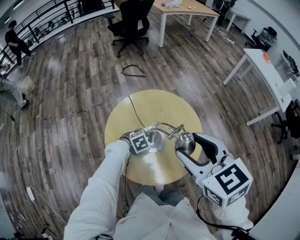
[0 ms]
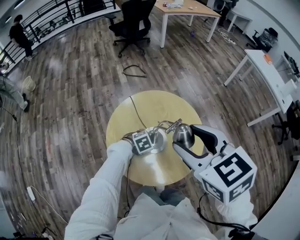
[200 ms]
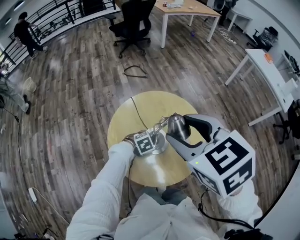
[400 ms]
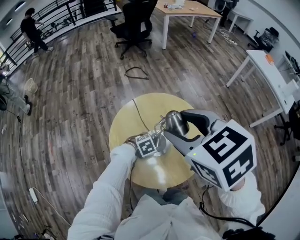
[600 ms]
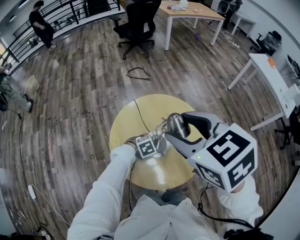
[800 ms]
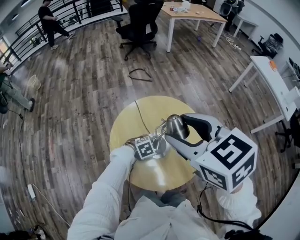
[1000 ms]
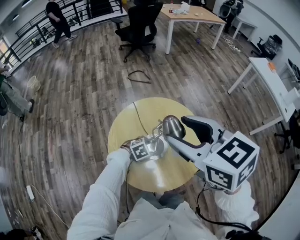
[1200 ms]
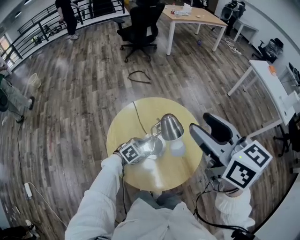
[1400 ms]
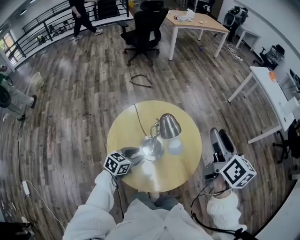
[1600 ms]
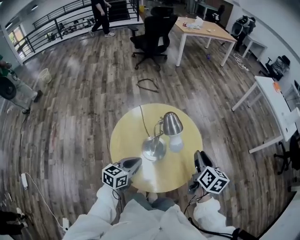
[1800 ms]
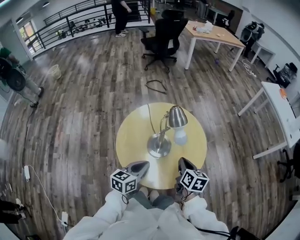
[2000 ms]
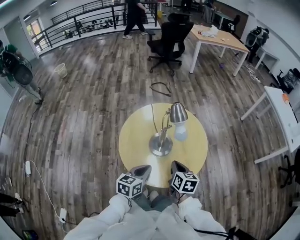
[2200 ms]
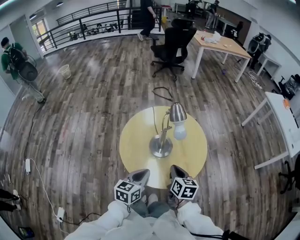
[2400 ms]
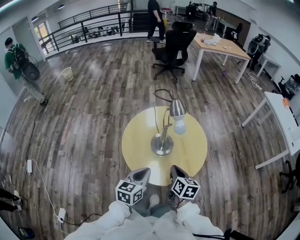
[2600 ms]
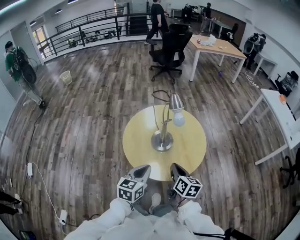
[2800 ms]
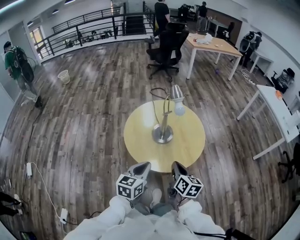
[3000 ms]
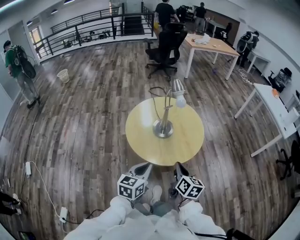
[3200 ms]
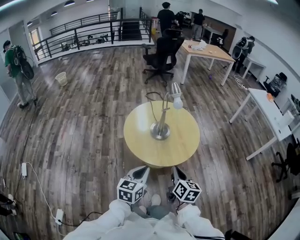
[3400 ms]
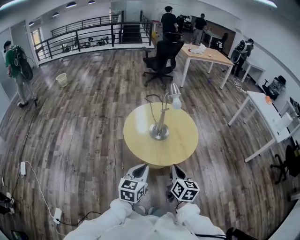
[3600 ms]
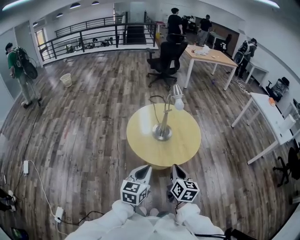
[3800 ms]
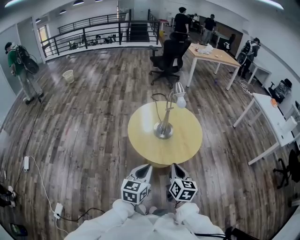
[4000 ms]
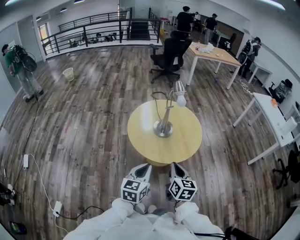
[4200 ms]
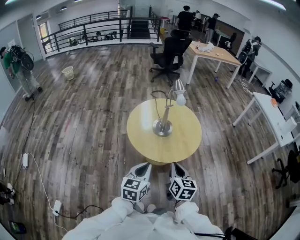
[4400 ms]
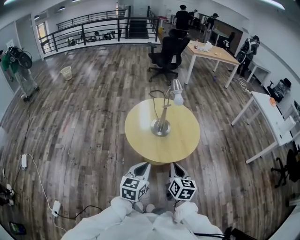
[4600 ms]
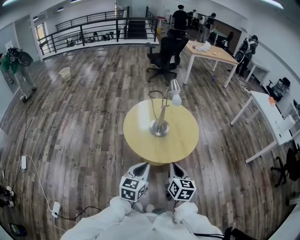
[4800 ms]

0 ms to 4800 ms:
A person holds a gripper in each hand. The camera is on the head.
0 ms to 1600 ms: The right gripper heads forward and to the right, covering some 15 cm, and changes its angle by roughly 50 degrees; the left gripper moves upward, some 10 cm, and tilts its fingers roughly 30 degrees upward.
1600 ms to 3200 ms: The left gripper moves roughly 30 cm, rotates some 30 degrees, and closes its fingers; the right gripper shifts by approximately 35 cm, and closes its fingers.
3200 ms to 4800 ms: The right gripper changes place by approximately 5 cm.

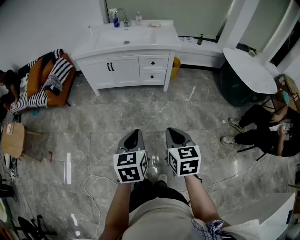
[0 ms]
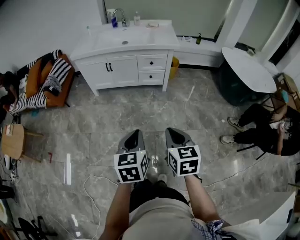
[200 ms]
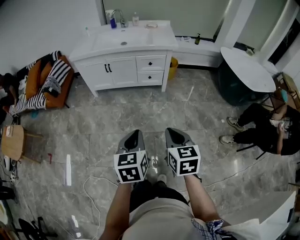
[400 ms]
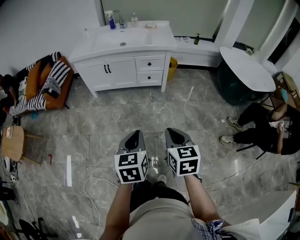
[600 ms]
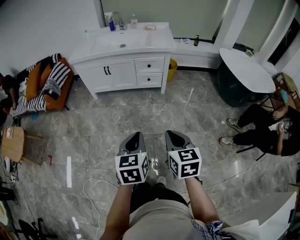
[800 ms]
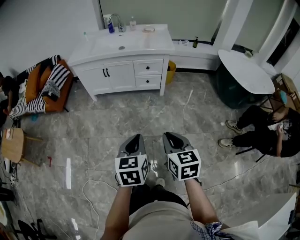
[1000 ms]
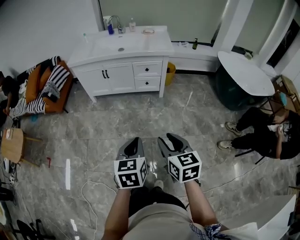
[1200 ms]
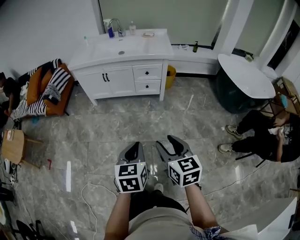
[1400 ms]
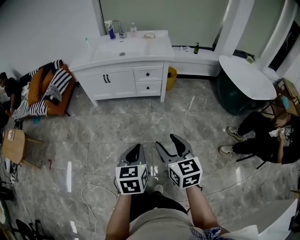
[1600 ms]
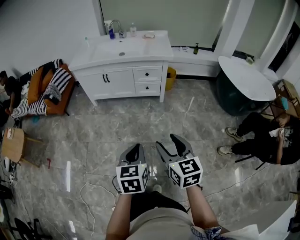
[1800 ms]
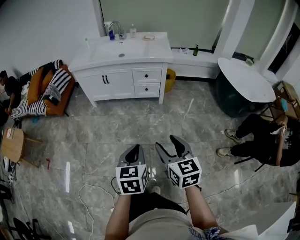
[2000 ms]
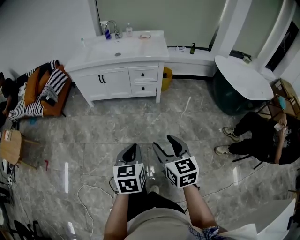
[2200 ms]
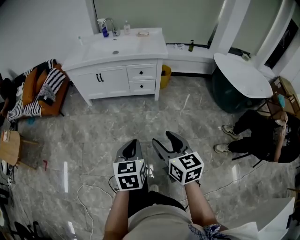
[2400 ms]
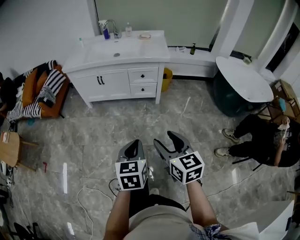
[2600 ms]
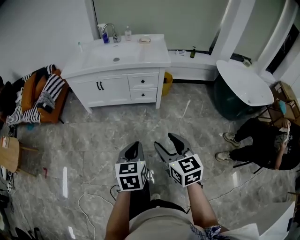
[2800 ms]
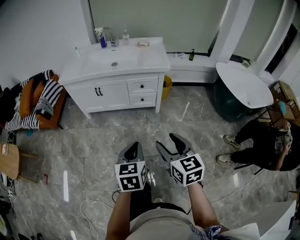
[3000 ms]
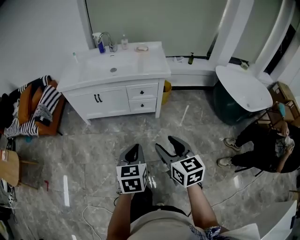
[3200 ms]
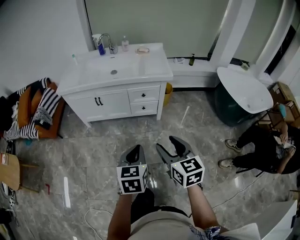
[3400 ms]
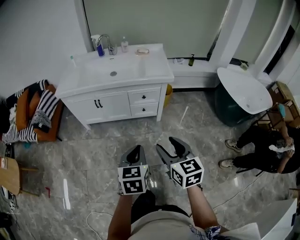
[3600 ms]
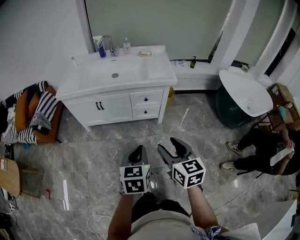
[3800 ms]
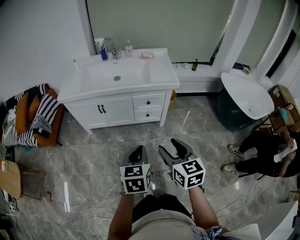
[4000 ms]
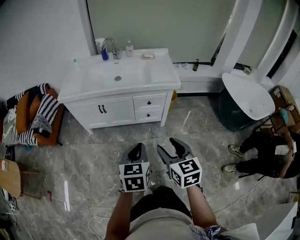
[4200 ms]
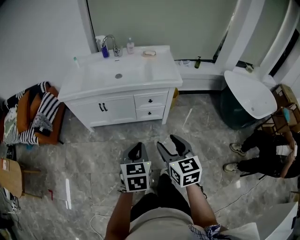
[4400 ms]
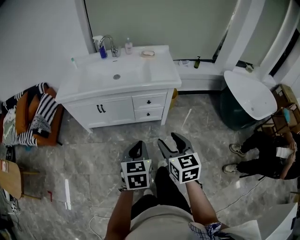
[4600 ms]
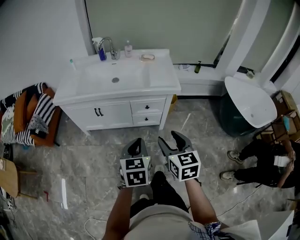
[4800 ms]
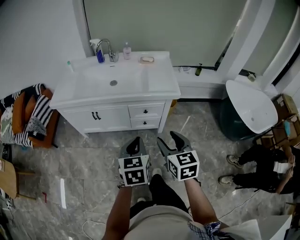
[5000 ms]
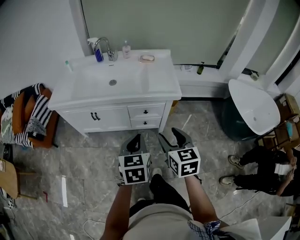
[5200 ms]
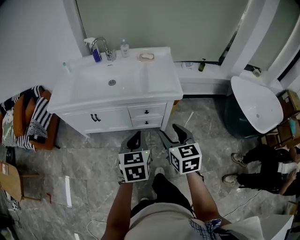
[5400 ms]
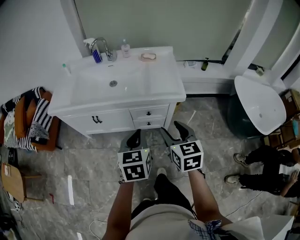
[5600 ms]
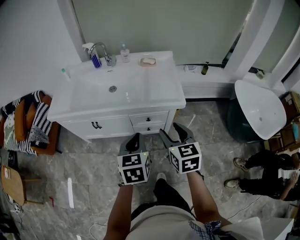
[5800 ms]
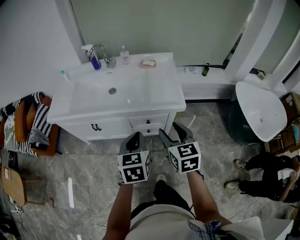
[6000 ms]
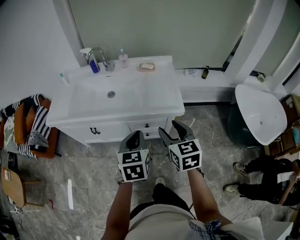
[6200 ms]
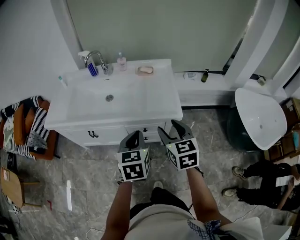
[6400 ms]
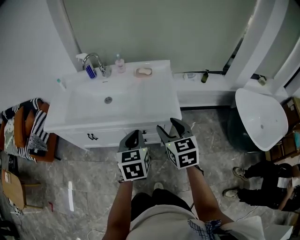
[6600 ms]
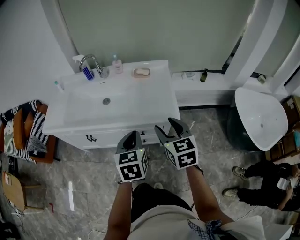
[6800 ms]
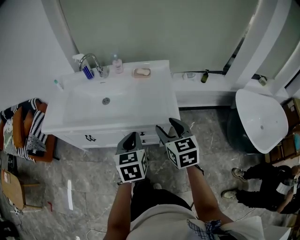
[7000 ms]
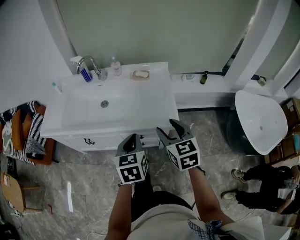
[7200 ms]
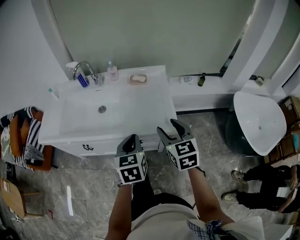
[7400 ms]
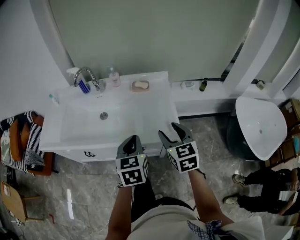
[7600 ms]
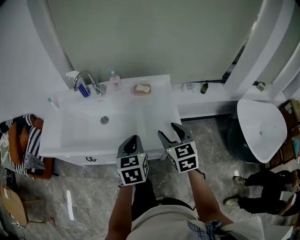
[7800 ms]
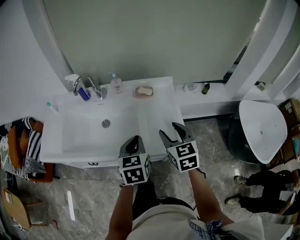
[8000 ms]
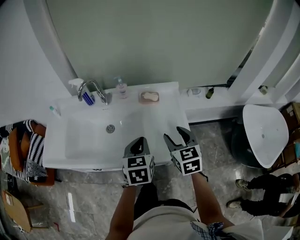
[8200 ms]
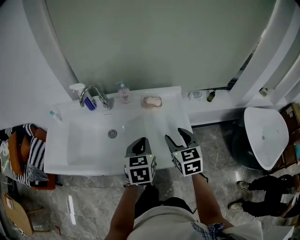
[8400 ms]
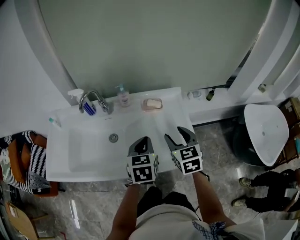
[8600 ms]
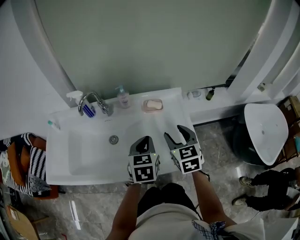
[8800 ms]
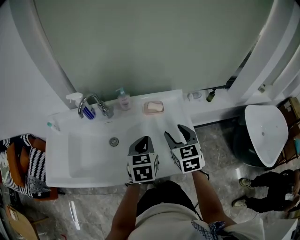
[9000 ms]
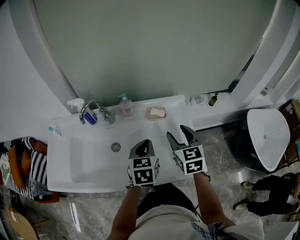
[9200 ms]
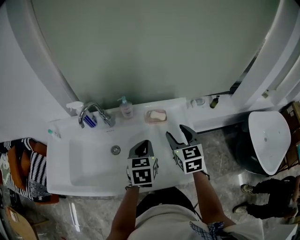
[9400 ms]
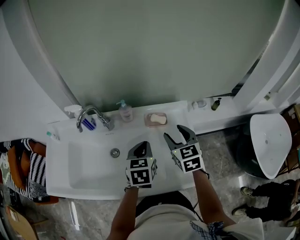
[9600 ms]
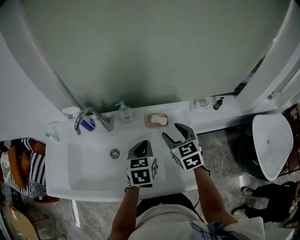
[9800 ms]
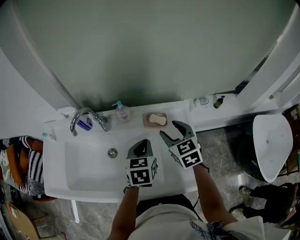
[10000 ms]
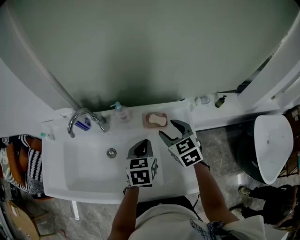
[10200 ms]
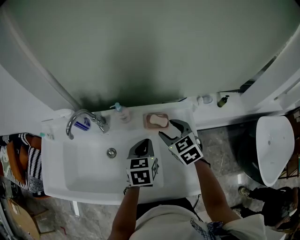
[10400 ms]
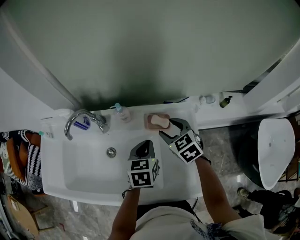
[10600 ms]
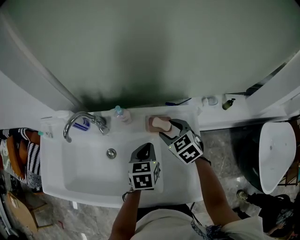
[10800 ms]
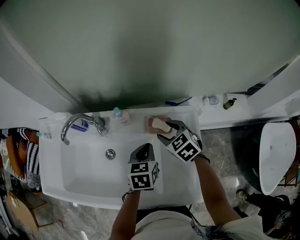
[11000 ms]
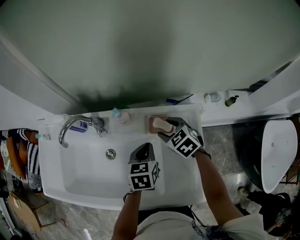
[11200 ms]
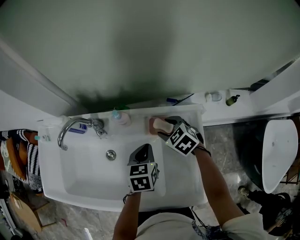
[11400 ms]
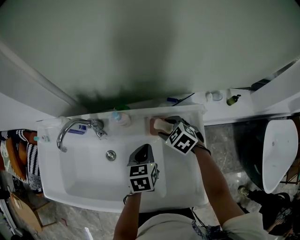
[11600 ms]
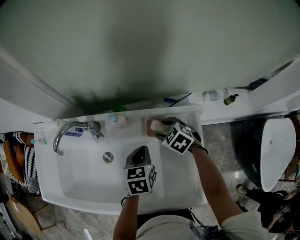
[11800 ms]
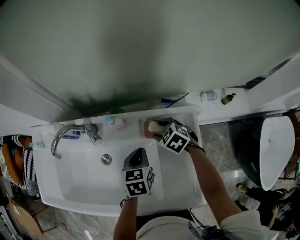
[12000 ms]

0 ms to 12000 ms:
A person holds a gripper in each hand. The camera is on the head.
0 ms to 1600 ms: The left gripper heads to the right, covering approximately 5 cm, while the right gripper opens.
1600 ms to 3000 ms: The two grippers go some 15 cm forward.
3000 ms to 4400 ms: The right gripper heads forward and to the left, covering roughly 15 cm; the left gripper is displaced forward by approximately 15 cm.
4400 ms to 6000 ms: Both grippers travel together forward, some 25 cm.
6000 ms to 7600 ms: Both grippers move forward, about 15 cm.
7600 ms to 9000 ms: The grippers both shift forward by approximately 20 cm.
9000 ms to 10400 ms: The grippers both shift forward by approximately 15 cm. The right gripper rotates roughly 30 degrees.
10400 ms to 12000 ms: The left gripper goes about 5 cm downward. Meanwhile the right gripper heads downward and forward, covering about 15 cm, and rotates approximately 30 degrees.

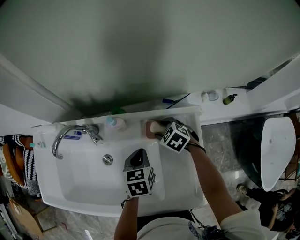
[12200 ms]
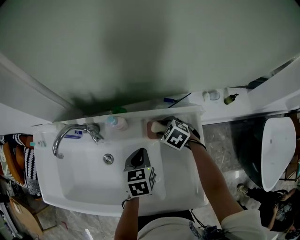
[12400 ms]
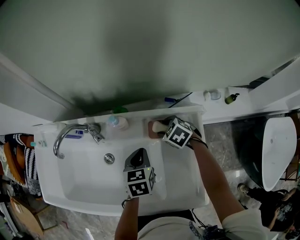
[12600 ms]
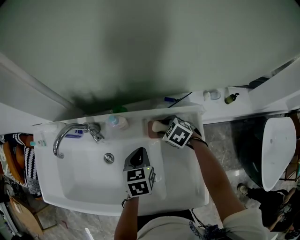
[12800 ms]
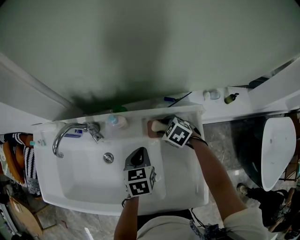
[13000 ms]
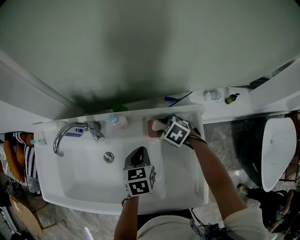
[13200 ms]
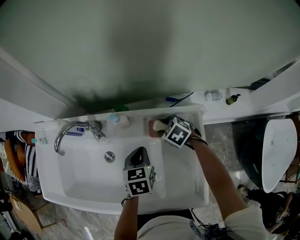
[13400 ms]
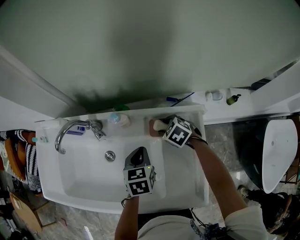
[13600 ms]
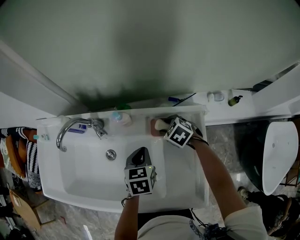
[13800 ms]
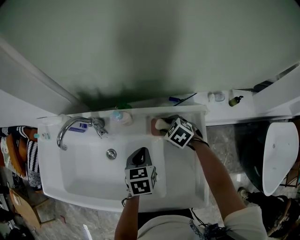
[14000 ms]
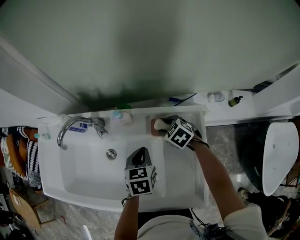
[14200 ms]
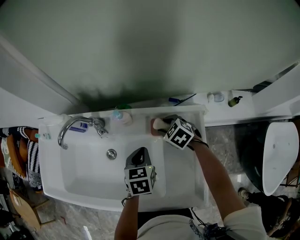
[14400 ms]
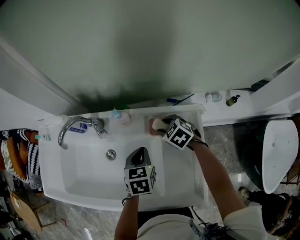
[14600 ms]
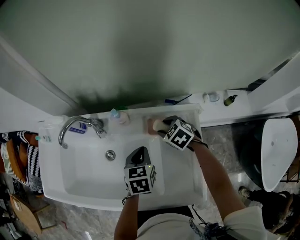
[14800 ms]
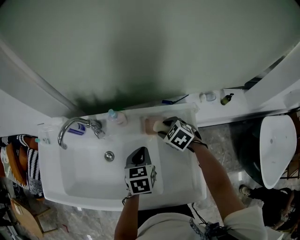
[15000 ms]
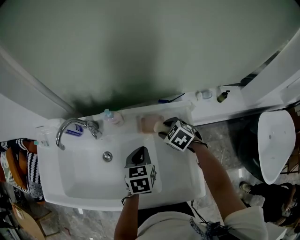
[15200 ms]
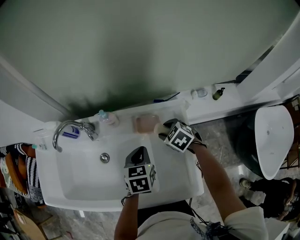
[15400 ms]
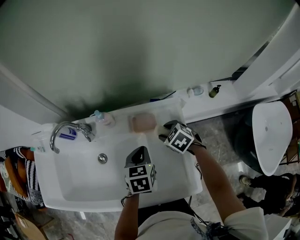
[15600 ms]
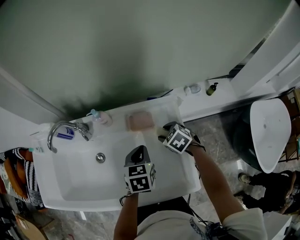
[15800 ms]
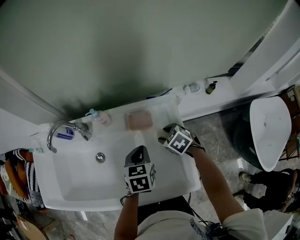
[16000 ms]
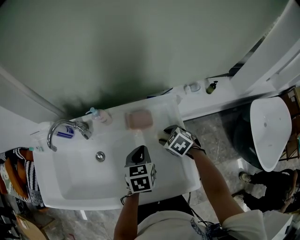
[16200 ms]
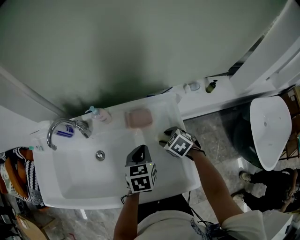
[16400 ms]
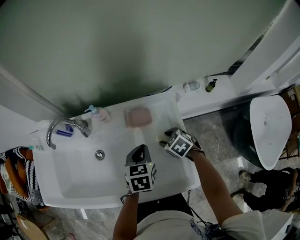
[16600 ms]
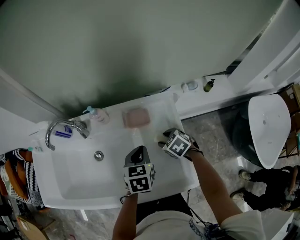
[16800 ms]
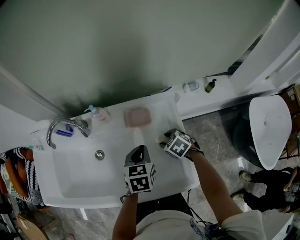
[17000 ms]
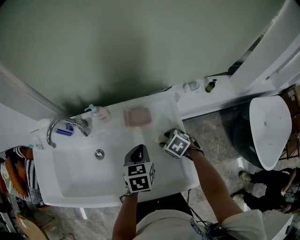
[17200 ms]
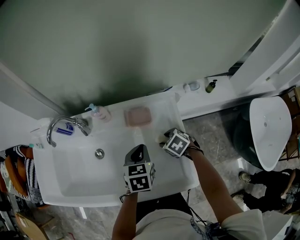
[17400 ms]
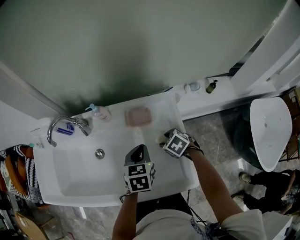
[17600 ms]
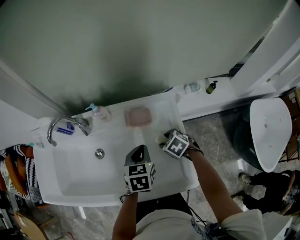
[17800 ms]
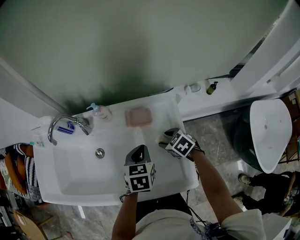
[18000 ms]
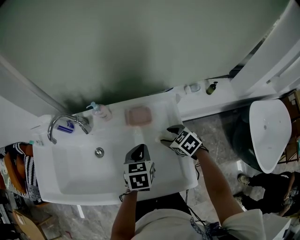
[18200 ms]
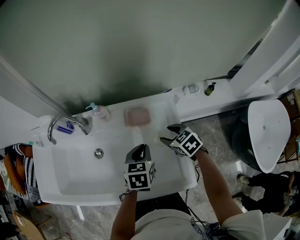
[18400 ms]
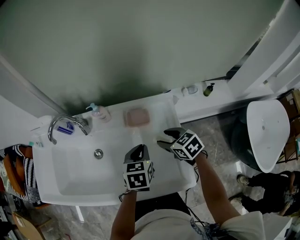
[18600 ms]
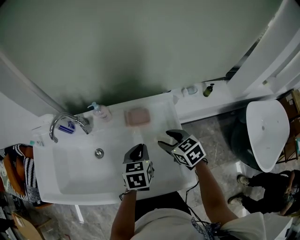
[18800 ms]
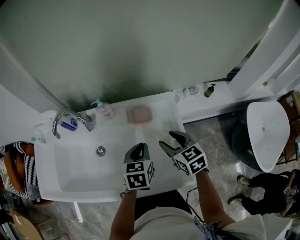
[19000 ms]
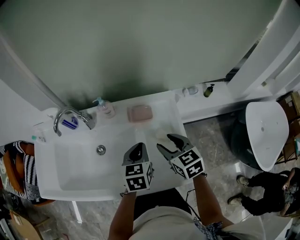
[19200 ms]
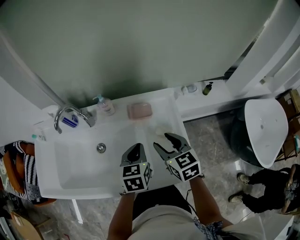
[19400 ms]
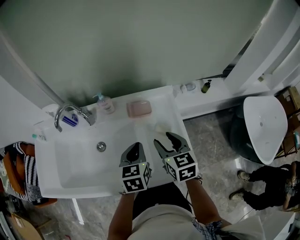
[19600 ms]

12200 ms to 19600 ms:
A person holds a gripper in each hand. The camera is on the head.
12200 ms to 13600 ms: The grippers make only small movements.
13600 ms to 15200 ms: The right gripper ends up some 5 cm from where it was; the left gripper changes place by approximately 5 cm.
15200 ms to 16600 ms: The left gripper changes place by approximately 5 cm; the right gripper moves backward, roughly 10 cm.
16600 ms to 18200 ms: The grippers move only a little.
18200 ms to 19600 ms: The left gripper shifts by about 10 cm, while the right gripper travels upward and backward by some 15 cm, and swivels roughly 40 degrees.
